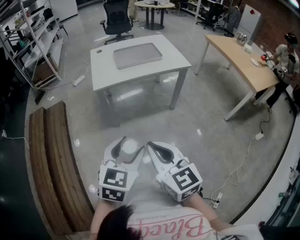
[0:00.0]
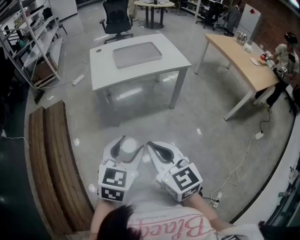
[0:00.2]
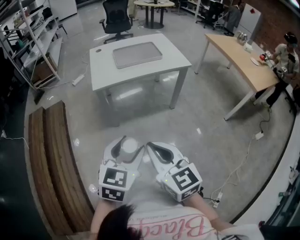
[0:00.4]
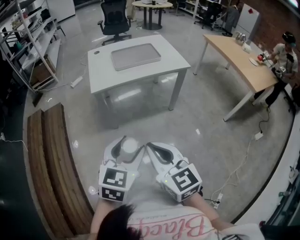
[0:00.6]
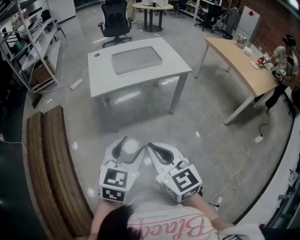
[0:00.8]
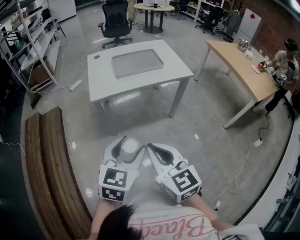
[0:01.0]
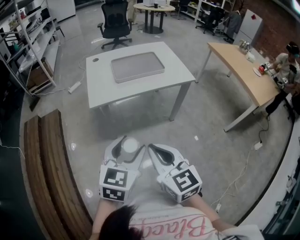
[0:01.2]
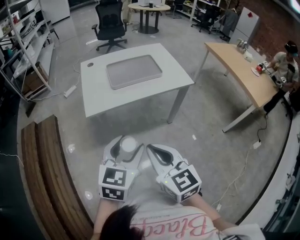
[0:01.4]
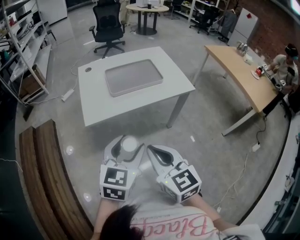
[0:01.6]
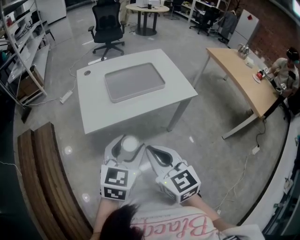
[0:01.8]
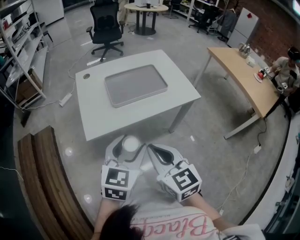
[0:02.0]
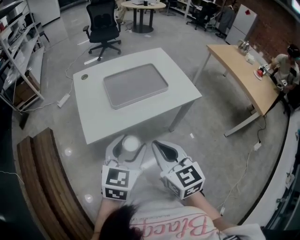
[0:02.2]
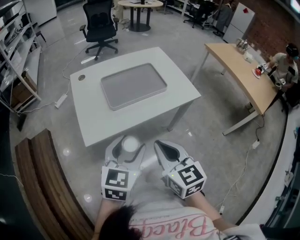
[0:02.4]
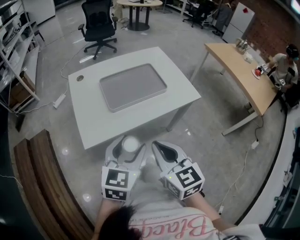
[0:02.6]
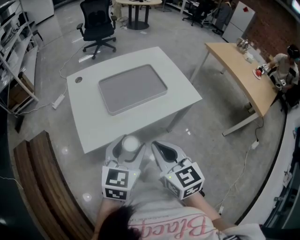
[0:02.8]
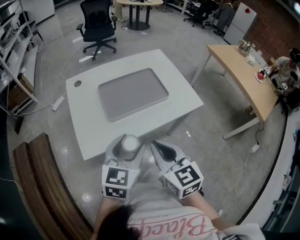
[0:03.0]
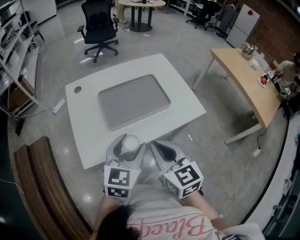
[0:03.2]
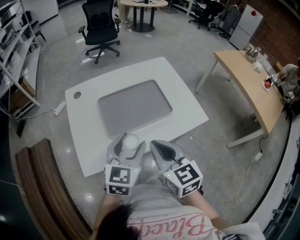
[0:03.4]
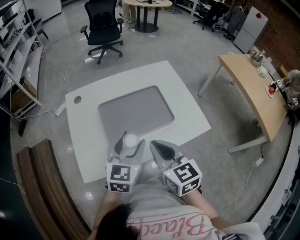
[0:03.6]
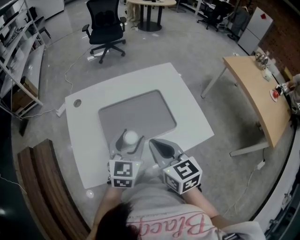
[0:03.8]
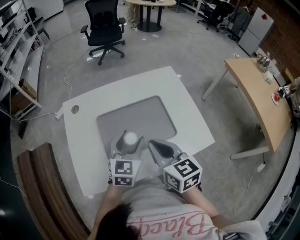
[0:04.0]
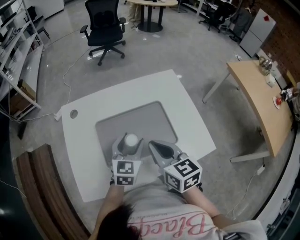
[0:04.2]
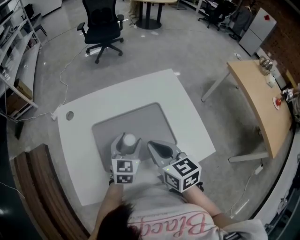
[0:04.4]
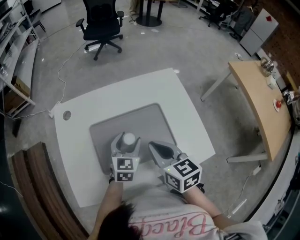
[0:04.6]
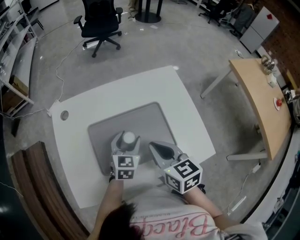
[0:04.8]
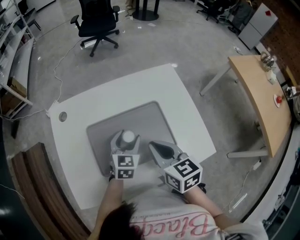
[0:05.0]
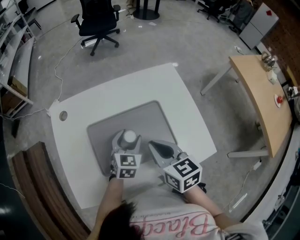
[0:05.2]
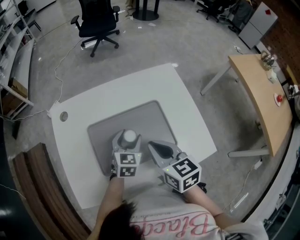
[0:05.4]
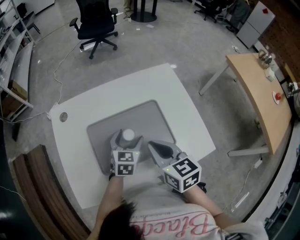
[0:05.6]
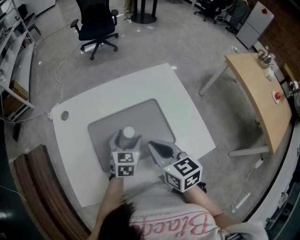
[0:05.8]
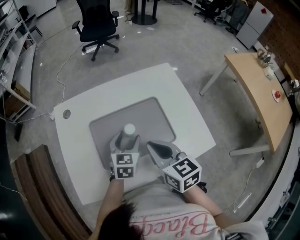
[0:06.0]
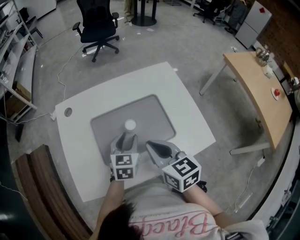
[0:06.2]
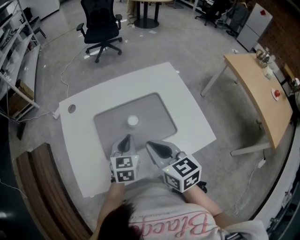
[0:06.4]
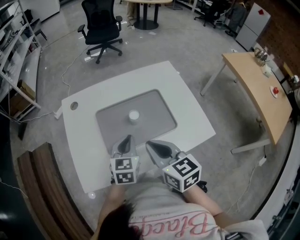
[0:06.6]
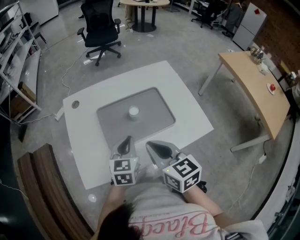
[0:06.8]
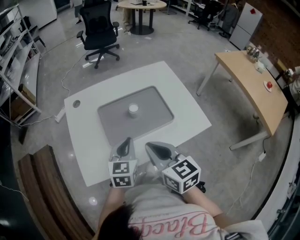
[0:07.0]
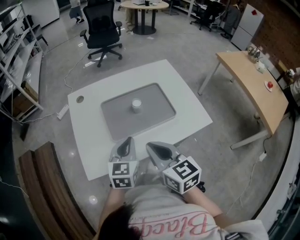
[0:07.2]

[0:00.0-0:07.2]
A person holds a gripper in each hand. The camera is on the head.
0.0 to 1.4 s: The two grippers go about 15 cm forward.
1.4 to 2.8 s: The two grippers go about 15 cm forward.
2.8 to 4.4 s: The right gripper is displaced forward by approximately 25 cm. Meanwhile the left gripper heads forward and downward, covering roughly 30 cm.
4.4 to 5.8 s: The grippers move only a little.
5.8 to 7.2 s: The left gripper shifts approximately 15 cm backward, upward and to the left, and closes up. The right gripper heads backward and to the left, covering approximately 15 cm.

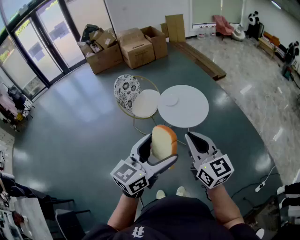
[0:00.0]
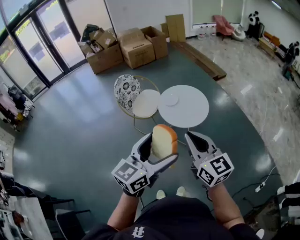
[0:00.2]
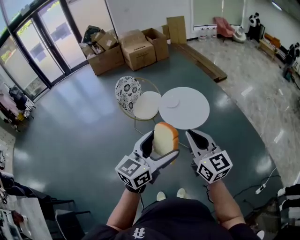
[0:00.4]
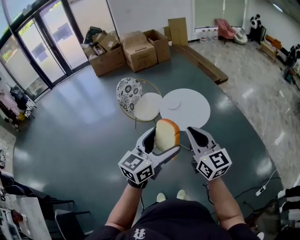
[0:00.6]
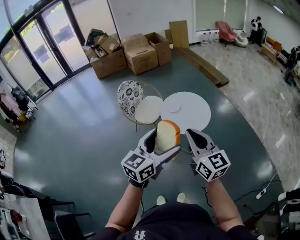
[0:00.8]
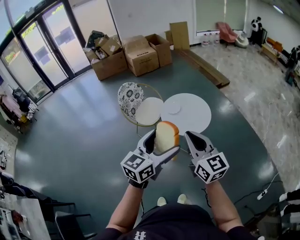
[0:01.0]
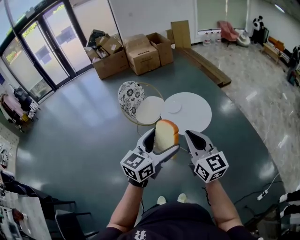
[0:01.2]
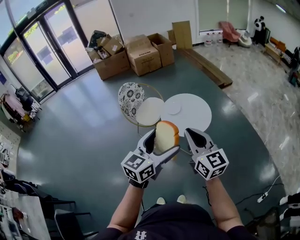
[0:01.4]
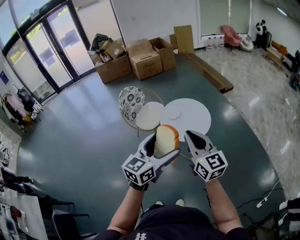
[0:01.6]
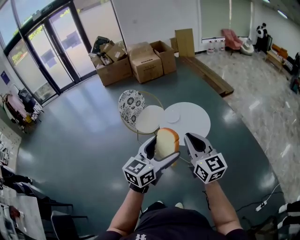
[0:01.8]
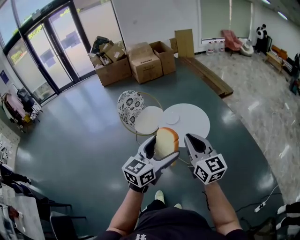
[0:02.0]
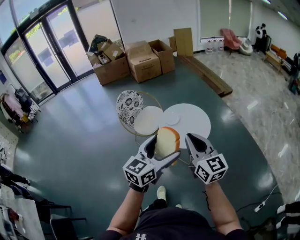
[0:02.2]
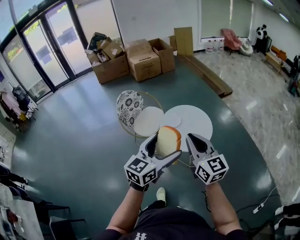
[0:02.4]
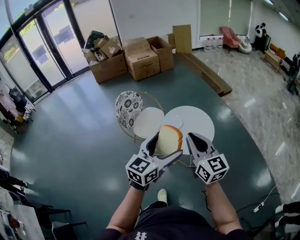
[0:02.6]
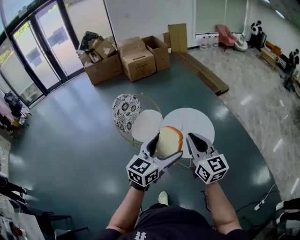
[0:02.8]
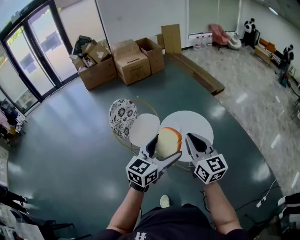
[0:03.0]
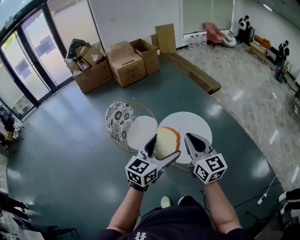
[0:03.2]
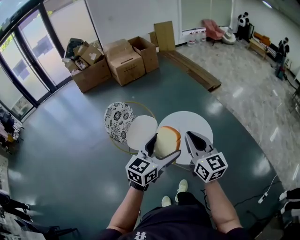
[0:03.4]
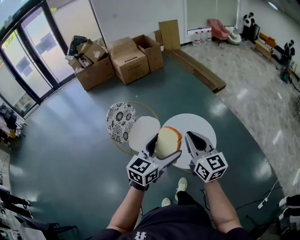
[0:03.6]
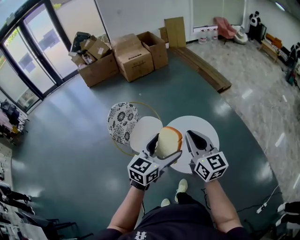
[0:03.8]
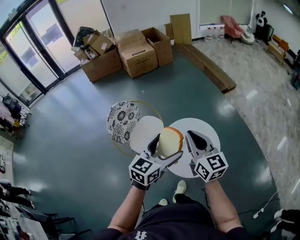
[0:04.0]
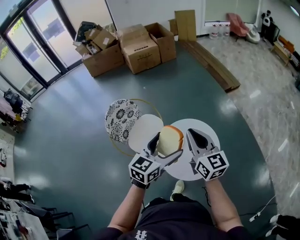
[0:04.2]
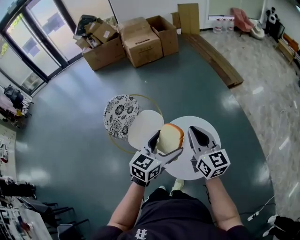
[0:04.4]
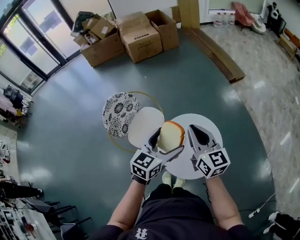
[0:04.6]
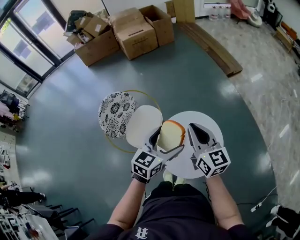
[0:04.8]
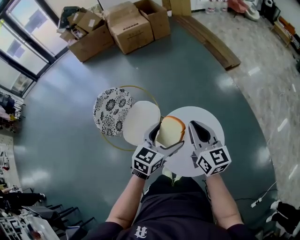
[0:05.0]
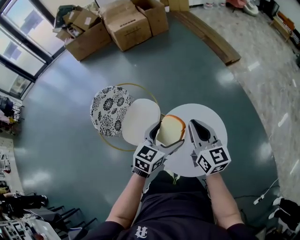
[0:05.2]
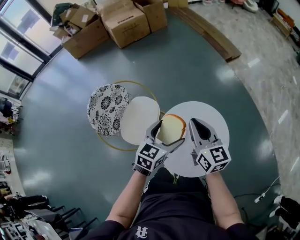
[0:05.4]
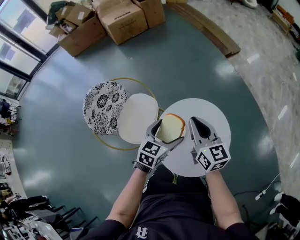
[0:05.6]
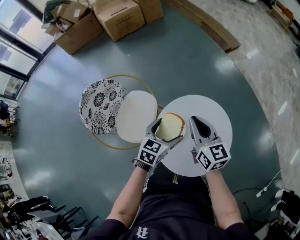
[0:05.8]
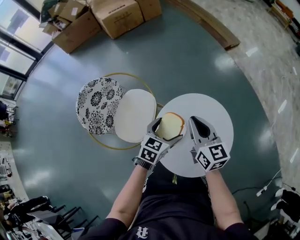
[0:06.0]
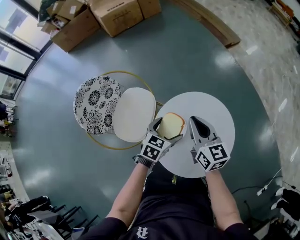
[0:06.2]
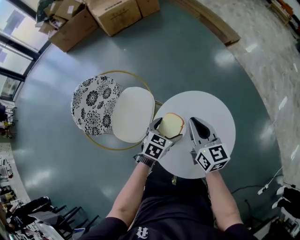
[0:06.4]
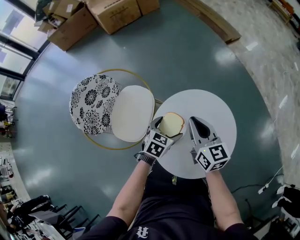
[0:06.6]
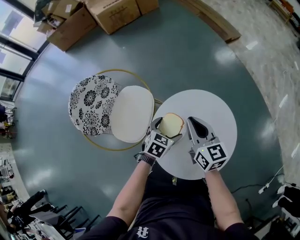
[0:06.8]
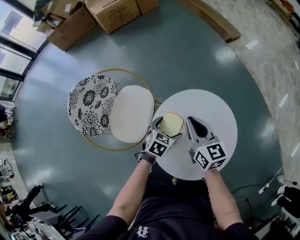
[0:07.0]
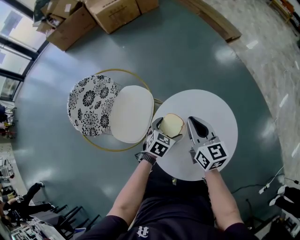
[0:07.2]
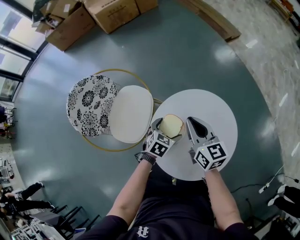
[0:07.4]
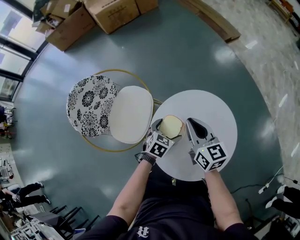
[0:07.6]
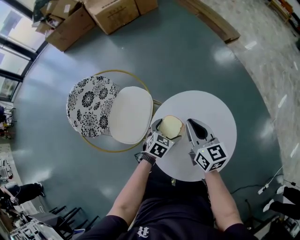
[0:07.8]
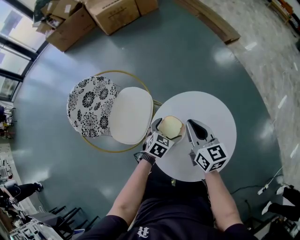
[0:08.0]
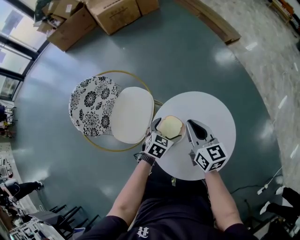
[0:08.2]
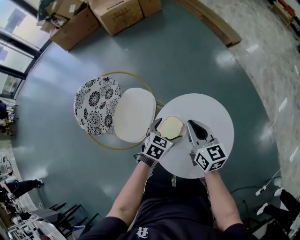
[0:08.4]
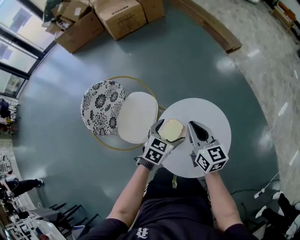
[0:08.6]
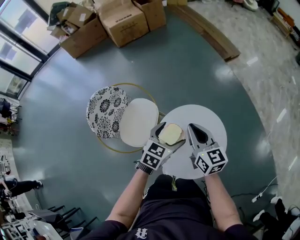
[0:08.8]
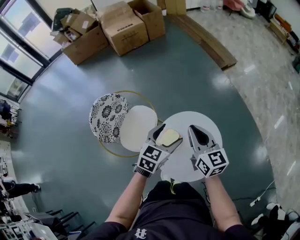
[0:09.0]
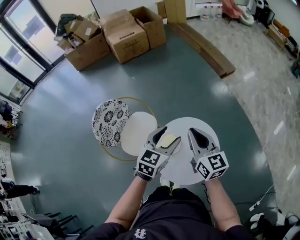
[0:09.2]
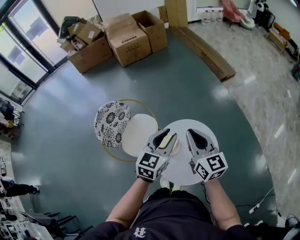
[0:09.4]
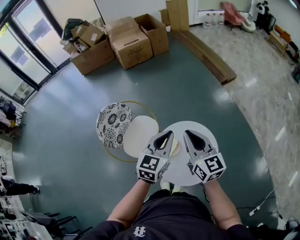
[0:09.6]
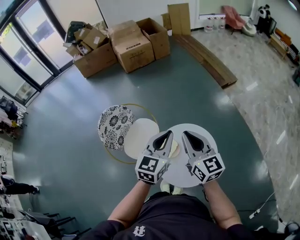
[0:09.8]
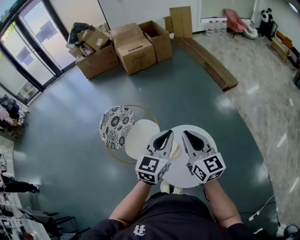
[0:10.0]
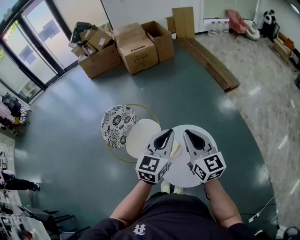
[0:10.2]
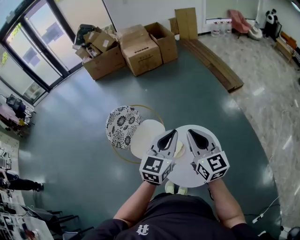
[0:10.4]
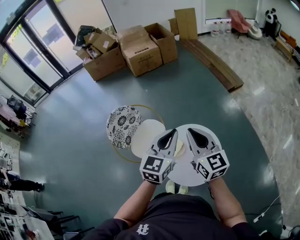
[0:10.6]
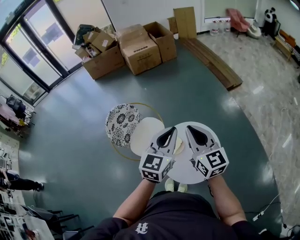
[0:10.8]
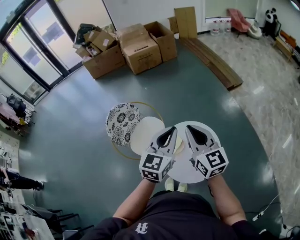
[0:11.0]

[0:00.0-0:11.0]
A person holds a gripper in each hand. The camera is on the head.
0.0 to 1.6 s: The grippers both shift forward by roughly 10 cm.
1.6 to 3.2 s: Both grippers move forward, about 20 cm.
3.2 to 4.8 s: The left gripper travels forward and downward by approximately 30 cm; the right gripper is displaced forward by some 25 cm.
4.8 to 6.2 s: Both grippers travel together downward, some 25 cm. The left gripper swivels some 20 degrees.
6.2 to 7.8 s: The right gripper is displaced downward by roughly 5 cm. The left gripper goes some 10 cm downward.
7.8 to 9.4 s: Both grippers travel together upward, approximately 35 cm. The left gripper tips its fingers upward by approximately 30 degrees, and closes its fingers.
9.4 to 11.0 s: The left gripper heads upward and backward, covering about 10 cm; the right gripper is displaced upward by roughly 5 cm.

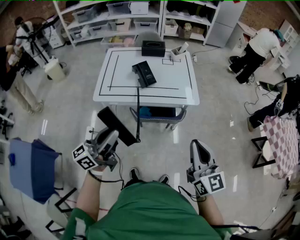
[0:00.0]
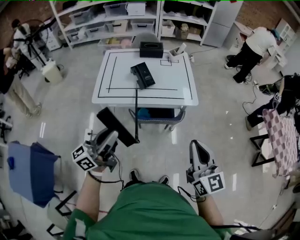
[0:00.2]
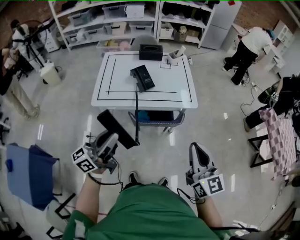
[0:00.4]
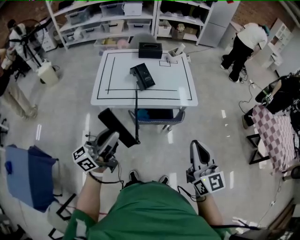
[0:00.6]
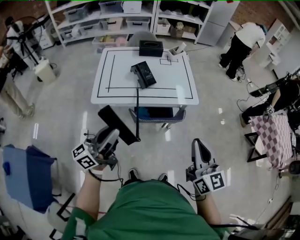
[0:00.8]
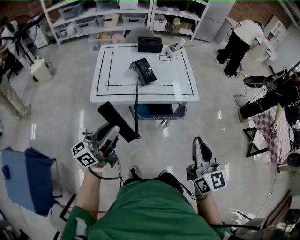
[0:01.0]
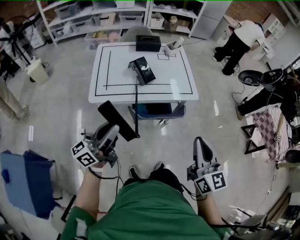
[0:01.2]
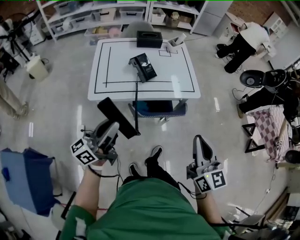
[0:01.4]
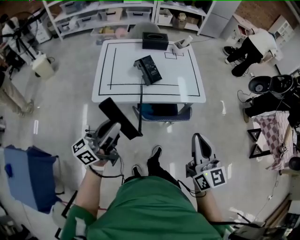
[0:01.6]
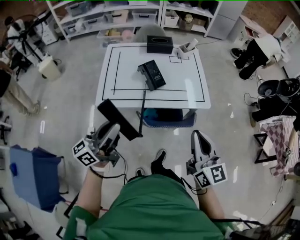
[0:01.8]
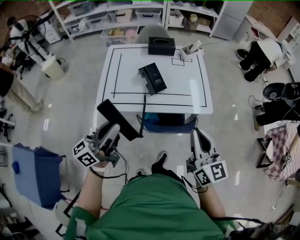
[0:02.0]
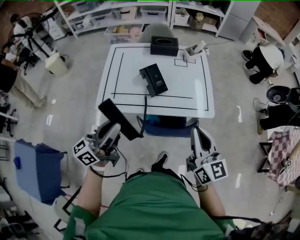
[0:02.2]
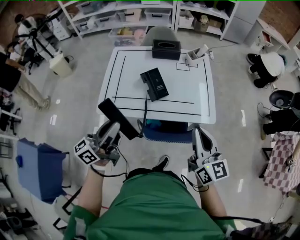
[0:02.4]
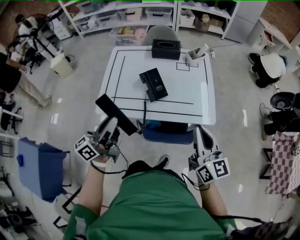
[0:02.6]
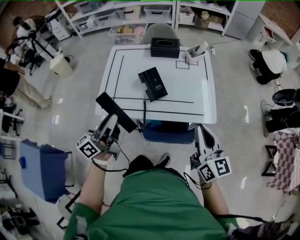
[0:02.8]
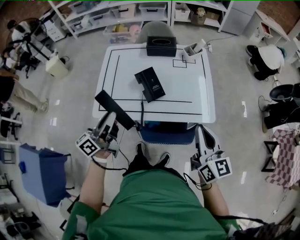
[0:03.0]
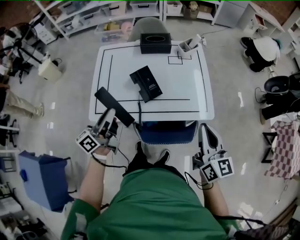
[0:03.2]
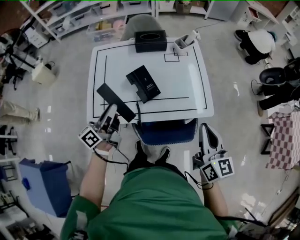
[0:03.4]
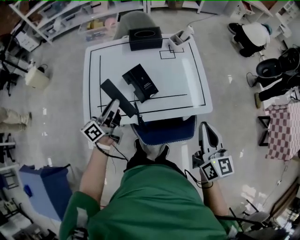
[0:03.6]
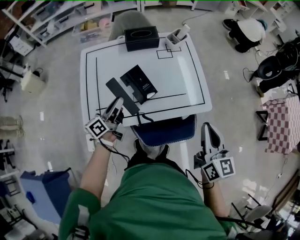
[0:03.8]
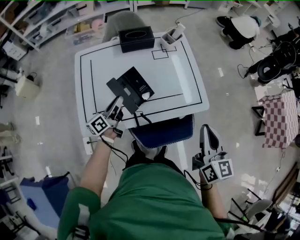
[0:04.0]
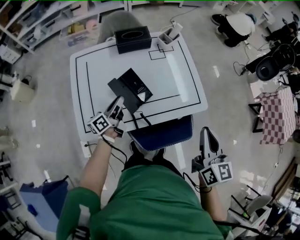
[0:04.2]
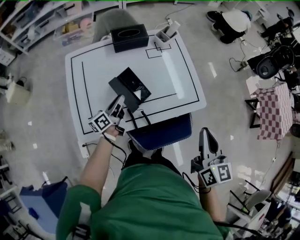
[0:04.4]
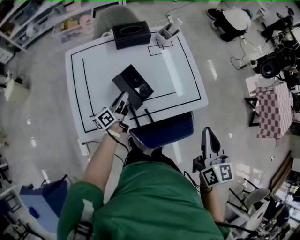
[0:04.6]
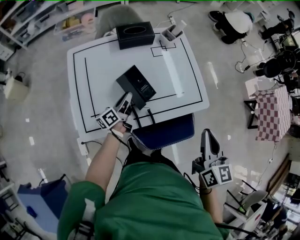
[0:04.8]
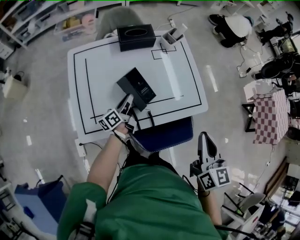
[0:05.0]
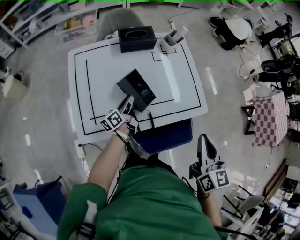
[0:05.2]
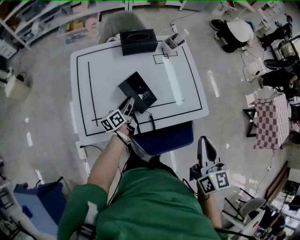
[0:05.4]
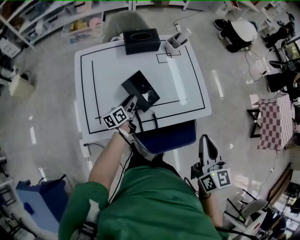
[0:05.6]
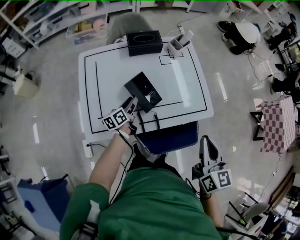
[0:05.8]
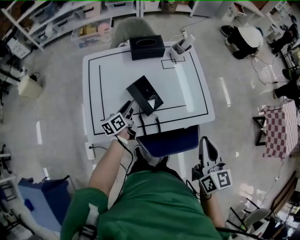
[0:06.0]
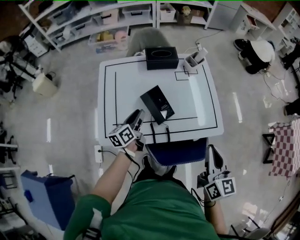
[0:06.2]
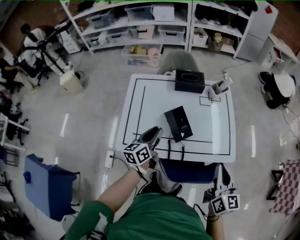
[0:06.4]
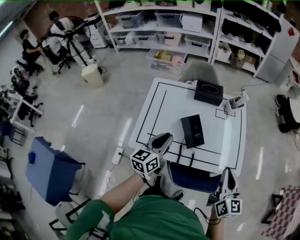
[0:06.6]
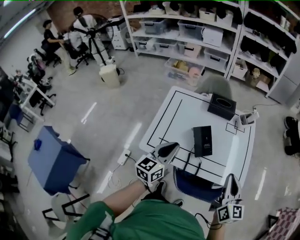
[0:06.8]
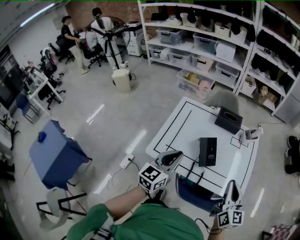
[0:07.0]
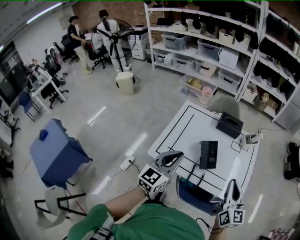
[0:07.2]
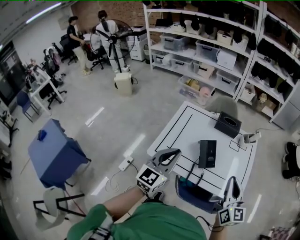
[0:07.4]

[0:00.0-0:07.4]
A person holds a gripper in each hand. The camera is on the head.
0.0 to 1.4 s: Both grippers travel together to the left, some 10 cm.
1.4 to 3.0 s: Both grippers travel together forward, roughly 25 cm. The left gripper rotates some 20 degrees.
3.0 to 4.4 s: The right gripper turns by about 30 degrees; the left gripper heads forward and downward, covering approximately 30 cm, and turns by approximately 30 degrees.
4.4 to 6.0 s: The grippers stay close to where they were, moving slightly.
6.0 to 7.4 s: The left gripper shifts some 40 cm upward and backward, rolls clockwise, seen from behind, by about 50 degrees, and closes its fingers; the right gripper moves upward and to the left, some 10 cm, and changes its angle by approximately 30 degrees.
